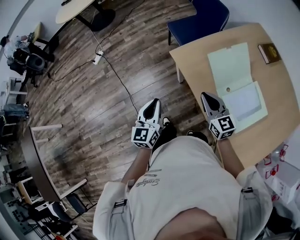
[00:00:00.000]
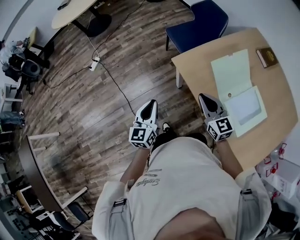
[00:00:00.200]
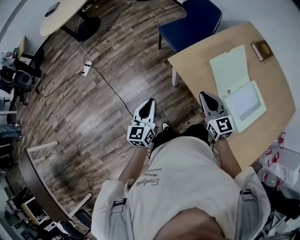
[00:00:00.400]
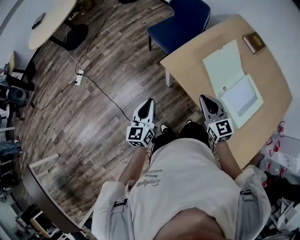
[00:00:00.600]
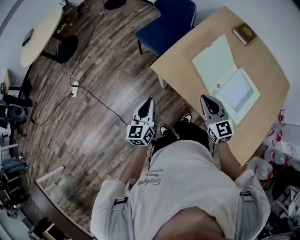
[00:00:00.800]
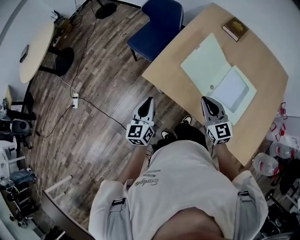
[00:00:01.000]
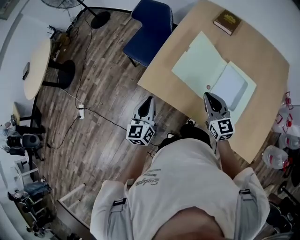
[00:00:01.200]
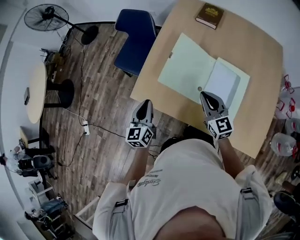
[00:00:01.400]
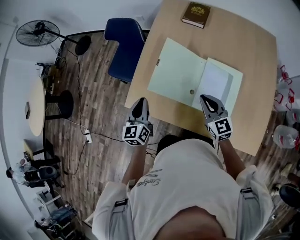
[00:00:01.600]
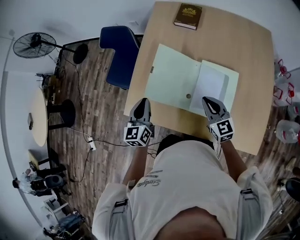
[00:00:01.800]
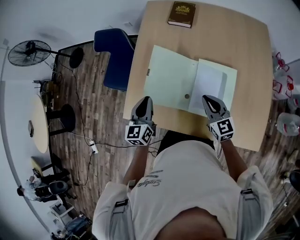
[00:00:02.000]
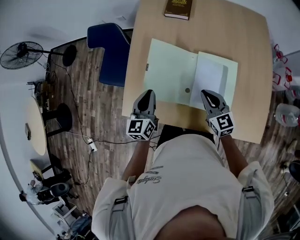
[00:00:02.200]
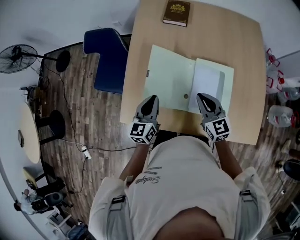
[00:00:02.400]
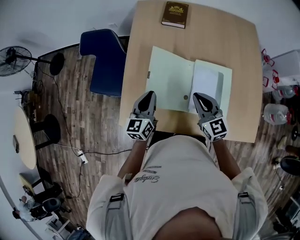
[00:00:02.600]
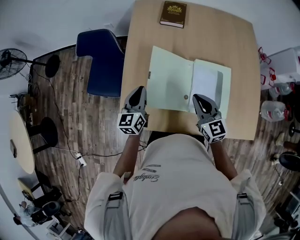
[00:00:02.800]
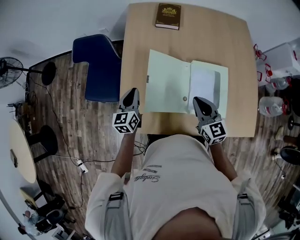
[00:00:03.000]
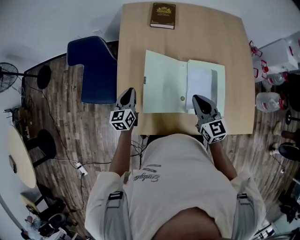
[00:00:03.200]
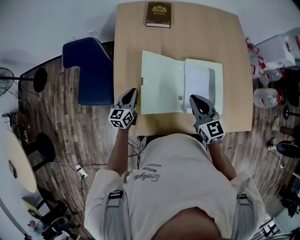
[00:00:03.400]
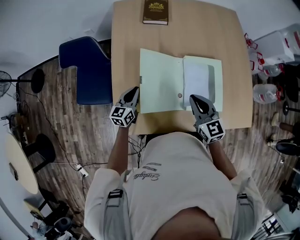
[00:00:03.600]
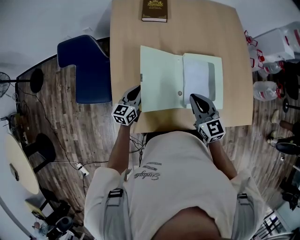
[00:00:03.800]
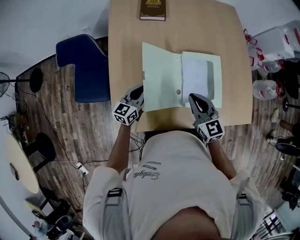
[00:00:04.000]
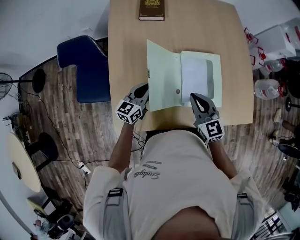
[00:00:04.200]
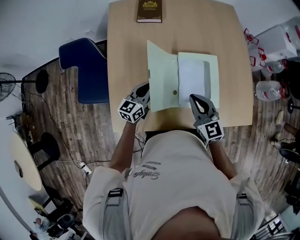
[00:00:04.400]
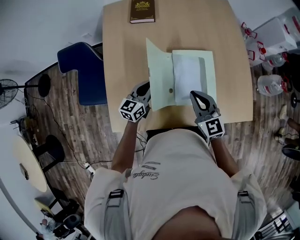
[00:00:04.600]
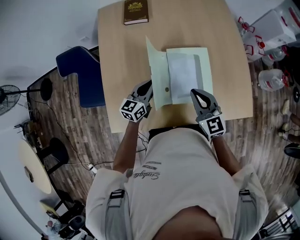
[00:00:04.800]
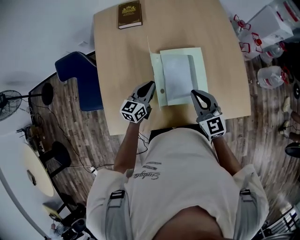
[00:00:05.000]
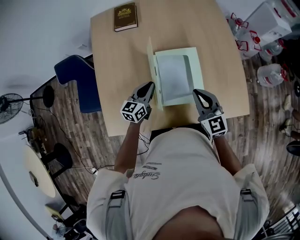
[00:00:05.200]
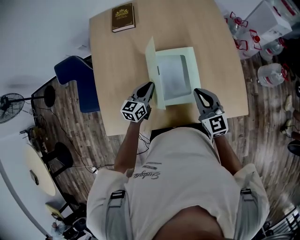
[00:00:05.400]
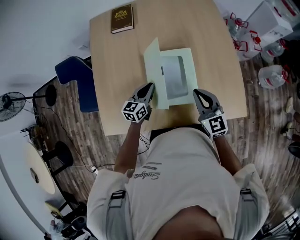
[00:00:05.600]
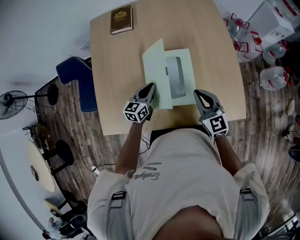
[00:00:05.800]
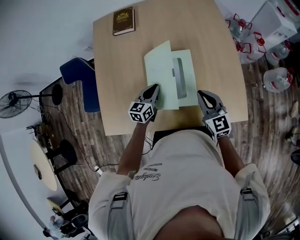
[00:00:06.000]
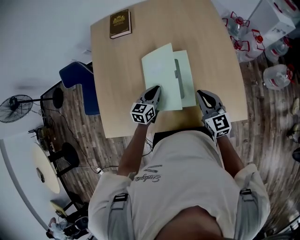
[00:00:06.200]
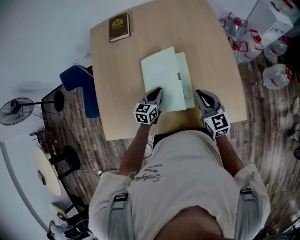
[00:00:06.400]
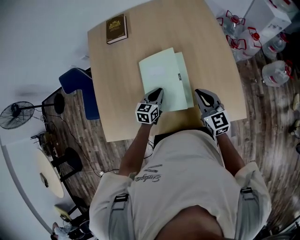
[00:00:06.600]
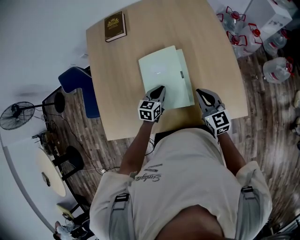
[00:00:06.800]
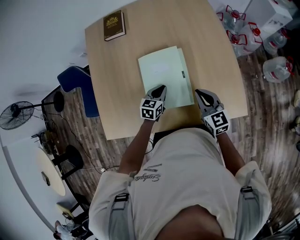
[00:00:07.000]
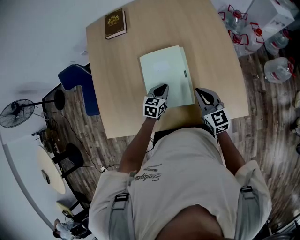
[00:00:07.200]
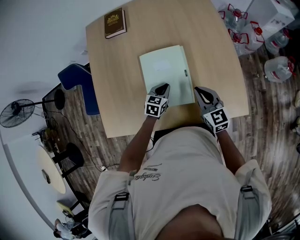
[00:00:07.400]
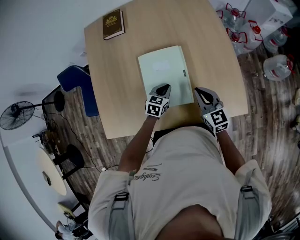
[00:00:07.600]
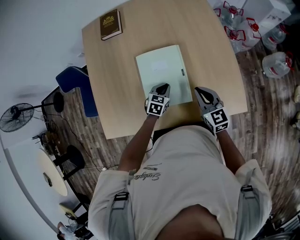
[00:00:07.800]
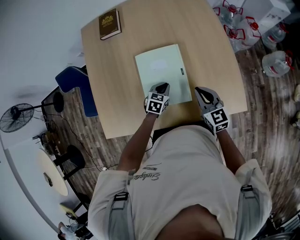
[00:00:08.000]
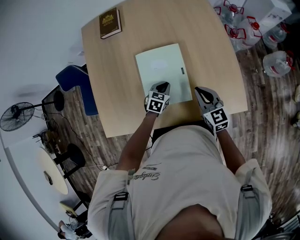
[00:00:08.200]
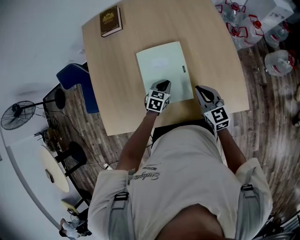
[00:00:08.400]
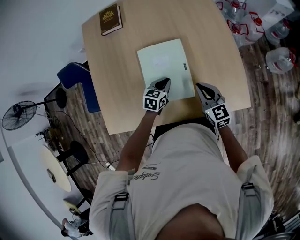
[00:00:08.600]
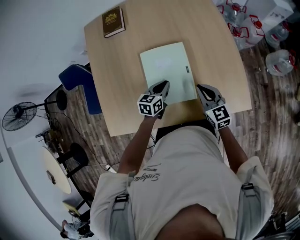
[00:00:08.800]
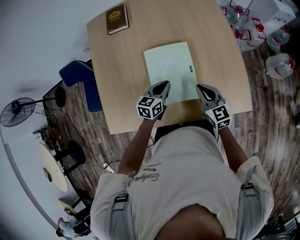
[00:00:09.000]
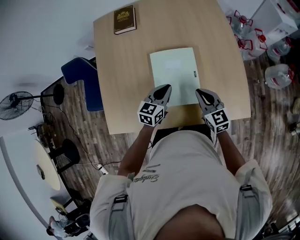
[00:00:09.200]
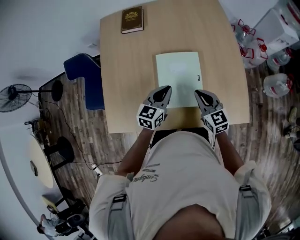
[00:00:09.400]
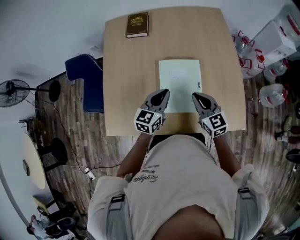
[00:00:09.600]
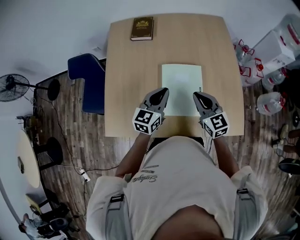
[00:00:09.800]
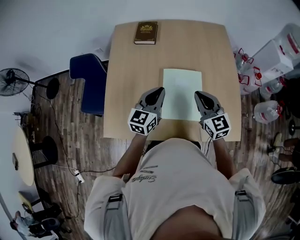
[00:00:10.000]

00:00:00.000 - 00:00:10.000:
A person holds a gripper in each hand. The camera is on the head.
00:00:00.000 - 00:00:01.400: The right gripper changes place by approximately 20 cm, and swivels some 40 degrees. Meanwhile the left gripper moves some 25 cm, and rotates some 30 degrees.
00:00:01.400 - 00:00:02.800: The left gripper is displaced forward by about 20 cm, and changes its angle by about 20 degrees, while the right gripper shifts about 5 cm forward, and goes to the right and returns, about 10 cm each way.
00:00:02.800 - 00:00:04.200: The left gripper travels to the right and downward by roughly 10 cm, and swivels about 30 degrees.
00:00:04.200 - 00:00:05.800: The grippers both shift to the right by about 20 cm.
00:00:05.800 - 00:00:07.200: The right gripper changes place by some 5 cm. The left gripper moves to the right and downward, some 10 cm, and changes its angle by approximately 20 degrees.
00:00:07.200 - 00:00:08.600: The grippers move only a little.
00:00:08.600 - 00:00:10.000: The grippers both shift upward and to the left by some 25 cm. The left gripper points its fingers some 30 degrees further upward.

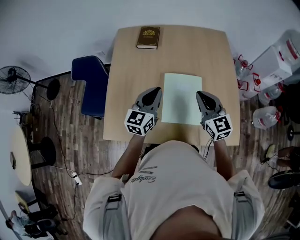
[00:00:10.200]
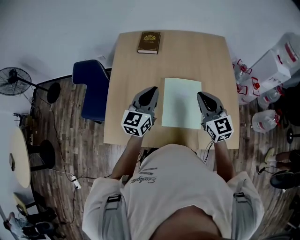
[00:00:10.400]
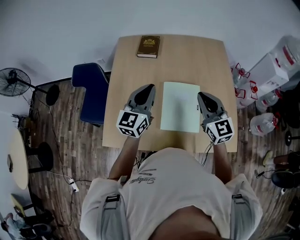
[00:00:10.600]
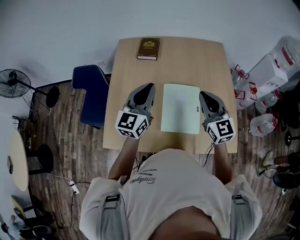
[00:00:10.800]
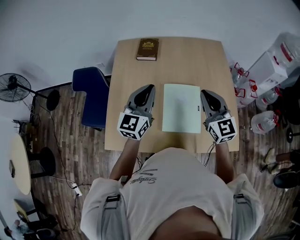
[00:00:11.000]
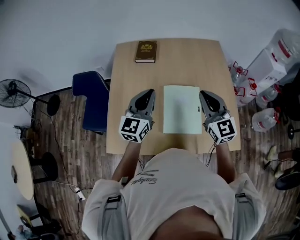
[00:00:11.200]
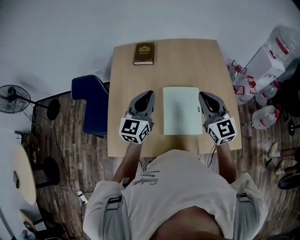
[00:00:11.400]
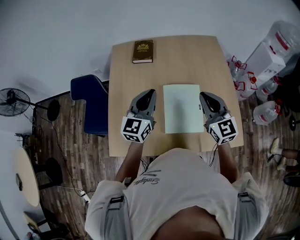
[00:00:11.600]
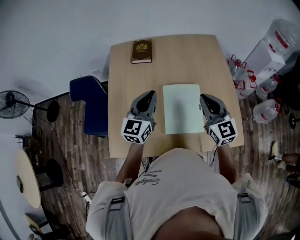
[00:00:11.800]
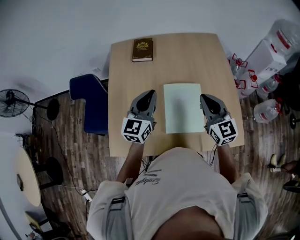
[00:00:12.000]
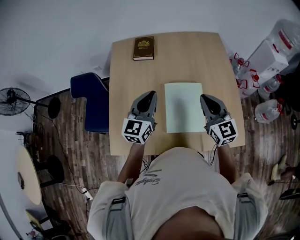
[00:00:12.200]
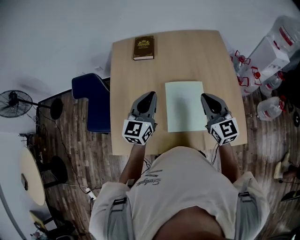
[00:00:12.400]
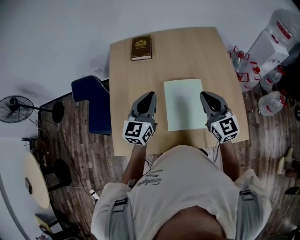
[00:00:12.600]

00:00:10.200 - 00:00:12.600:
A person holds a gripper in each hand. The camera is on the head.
00:00:10.200 - 00:00:11.400: Both grippers move upward, some 5 cm.
00:00:11.400 - 00:00:12.600: The grippers stay close to where they were, moving slightly.

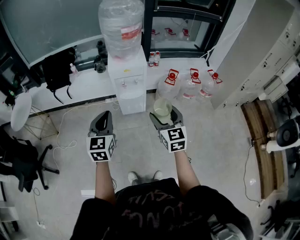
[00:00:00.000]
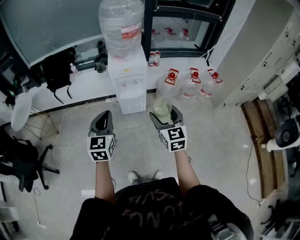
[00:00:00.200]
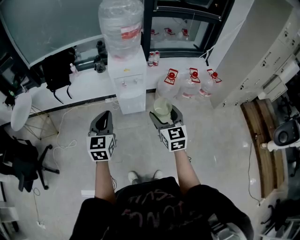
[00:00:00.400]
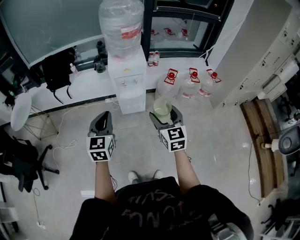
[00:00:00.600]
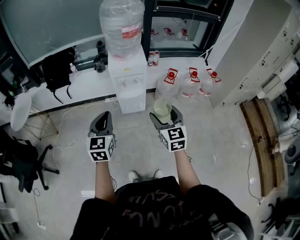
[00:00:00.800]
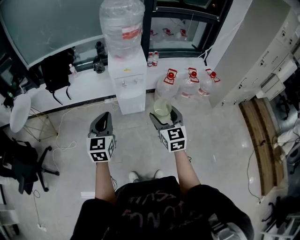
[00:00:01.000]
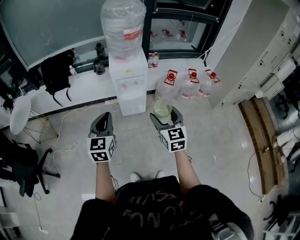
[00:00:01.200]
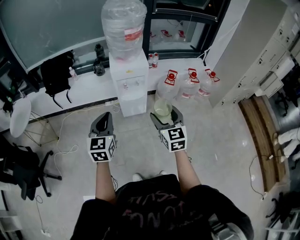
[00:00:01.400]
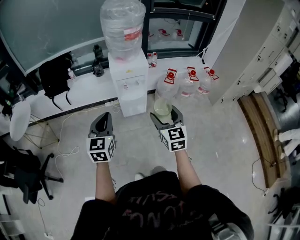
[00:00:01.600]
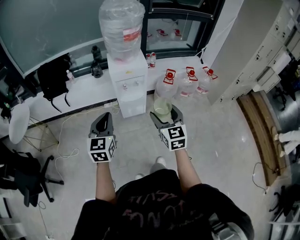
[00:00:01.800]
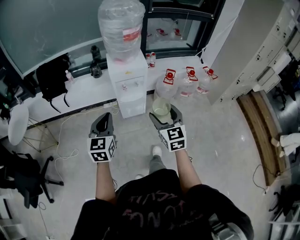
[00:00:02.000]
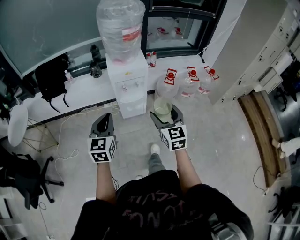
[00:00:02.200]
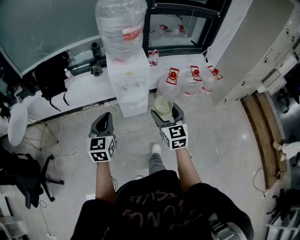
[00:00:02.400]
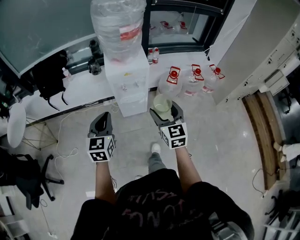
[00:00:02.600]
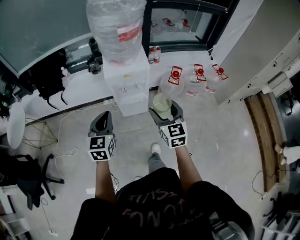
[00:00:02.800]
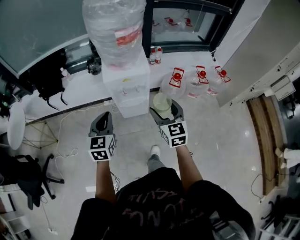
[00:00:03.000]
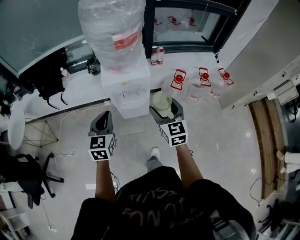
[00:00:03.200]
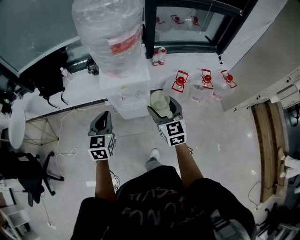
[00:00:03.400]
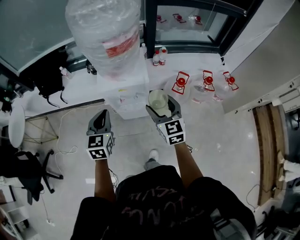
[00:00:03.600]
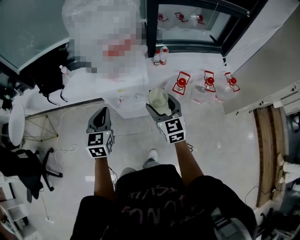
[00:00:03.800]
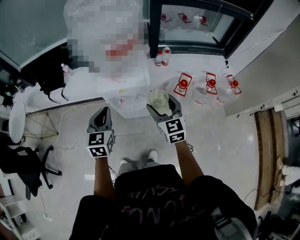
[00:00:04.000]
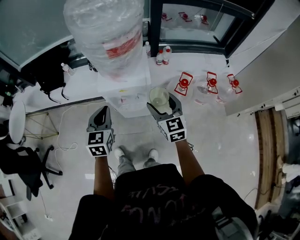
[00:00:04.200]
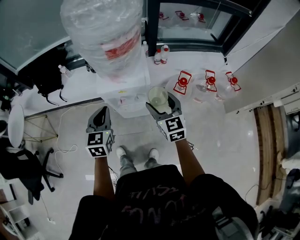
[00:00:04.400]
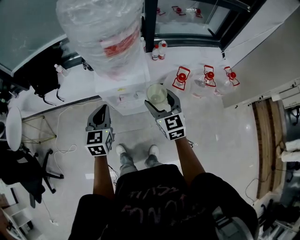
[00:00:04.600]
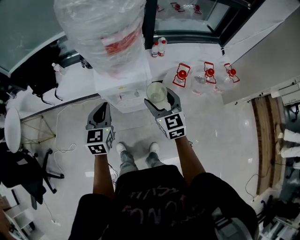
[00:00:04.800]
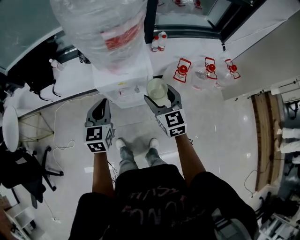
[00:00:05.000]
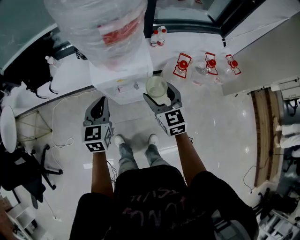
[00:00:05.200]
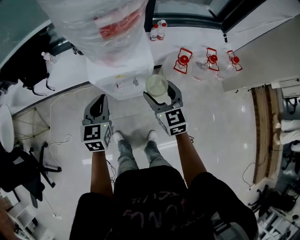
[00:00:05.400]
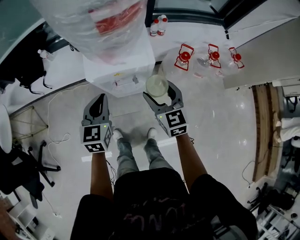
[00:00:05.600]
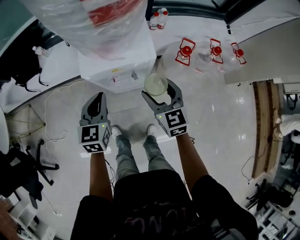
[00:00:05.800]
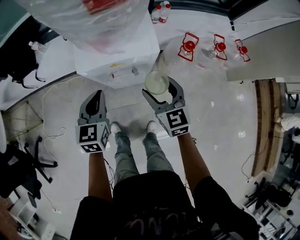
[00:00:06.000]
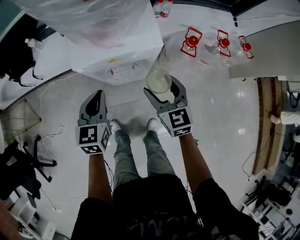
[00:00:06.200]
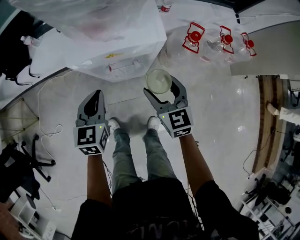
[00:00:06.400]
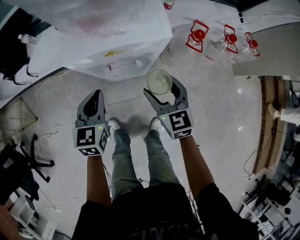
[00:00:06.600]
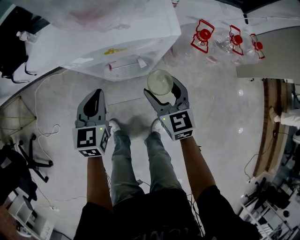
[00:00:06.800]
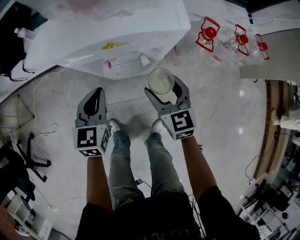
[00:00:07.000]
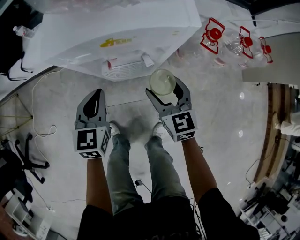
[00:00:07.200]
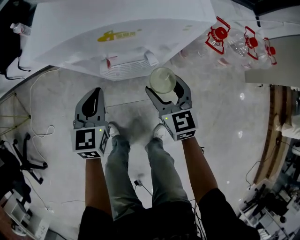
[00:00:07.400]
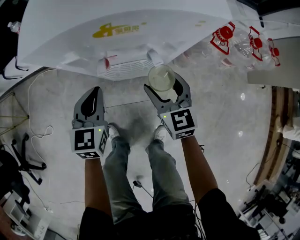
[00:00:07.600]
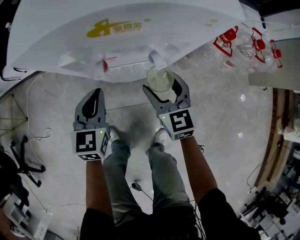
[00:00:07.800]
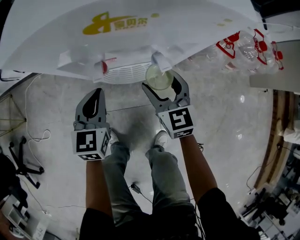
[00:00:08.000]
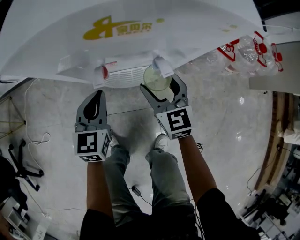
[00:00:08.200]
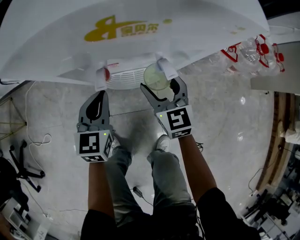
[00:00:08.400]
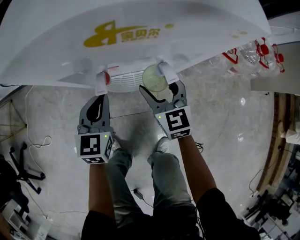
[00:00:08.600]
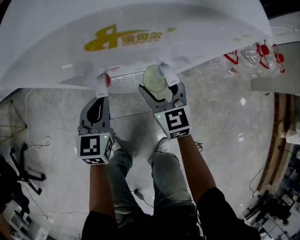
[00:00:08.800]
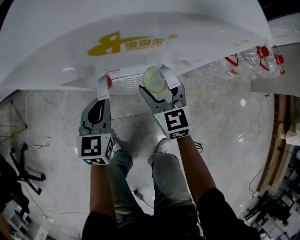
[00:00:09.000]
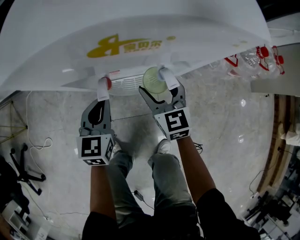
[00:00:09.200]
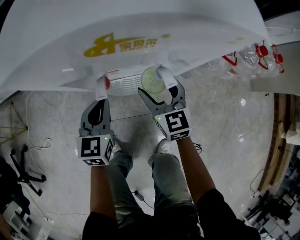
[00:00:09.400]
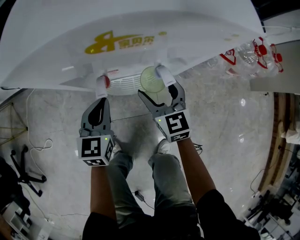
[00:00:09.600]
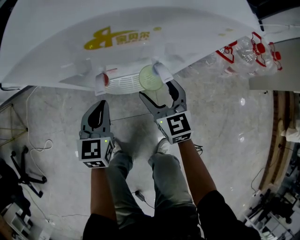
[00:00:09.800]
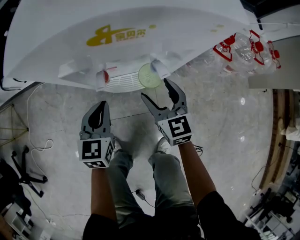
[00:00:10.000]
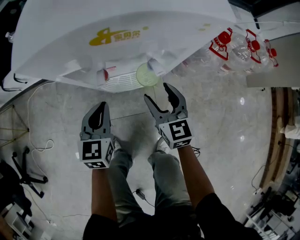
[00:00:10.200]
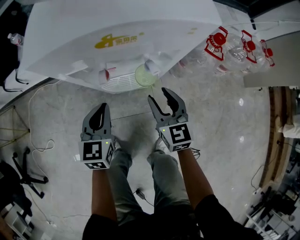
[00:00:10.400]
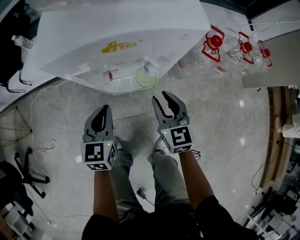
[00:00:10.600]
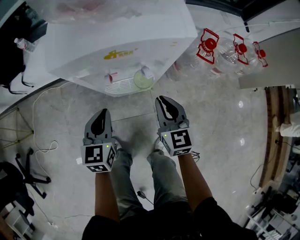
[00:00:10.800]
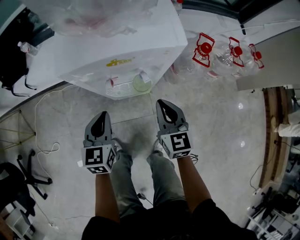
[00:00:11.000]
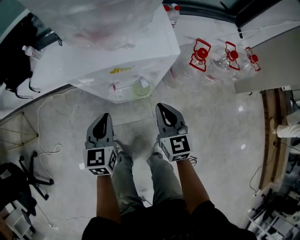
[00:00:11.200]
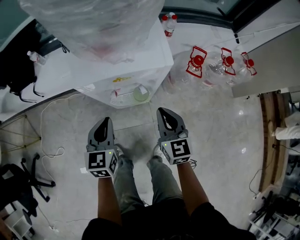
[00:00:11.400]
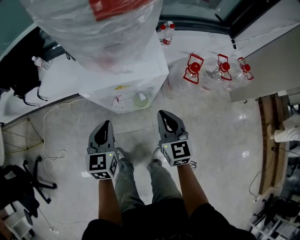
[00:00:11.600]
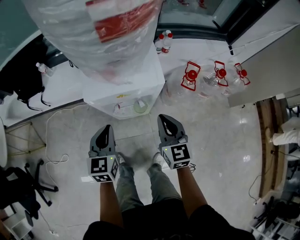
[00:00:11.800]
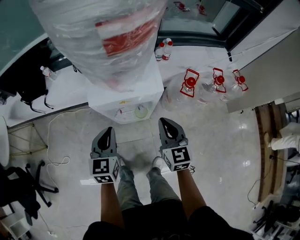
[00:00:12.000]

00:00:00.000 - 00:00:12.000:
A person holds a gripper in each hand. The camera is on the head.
00:00:00.000 - 00:00:01.600: Both grippers travel together to the left, approximately 5 cm.
00:00:01.600 - 00:00:03.000: Both grippers move forward, approximately 20 cm.
00:00:03.000 - 00:00:04.400: The two grippers go some 15 cm forward.
00:00:04.400 - 00:00:06.000: Both grippers move downward, roughly 15 cm.
00:00:06.000 - 00:00:07.600: The two grippers go some 25 cm downward.
00:00:07.600 - 00:00:09.000: The left gripper goes some 5 cm downward. The right gripper moves downward and forward, about 10 cm.
00:00:09.000 - 00:00:10.400: The left gripper shifts by approximately 5 cm; the right gripper is displaced backward by some 10 cm, and closes.
00:00:10.400 - 00:00:12.000: The two grippers go about 30 cm upward. The right gripper closes up.
